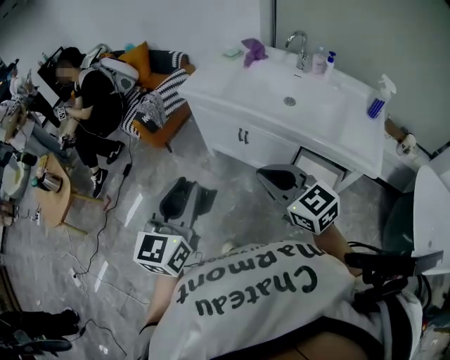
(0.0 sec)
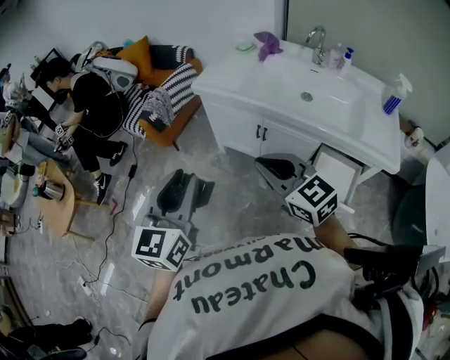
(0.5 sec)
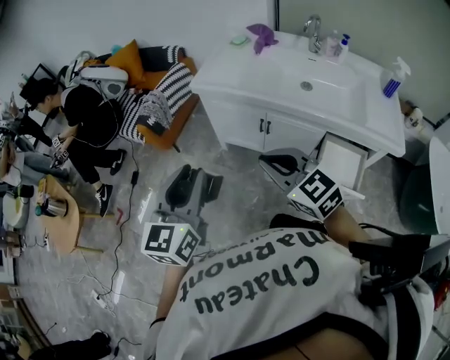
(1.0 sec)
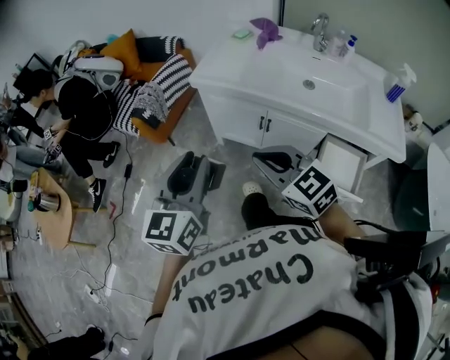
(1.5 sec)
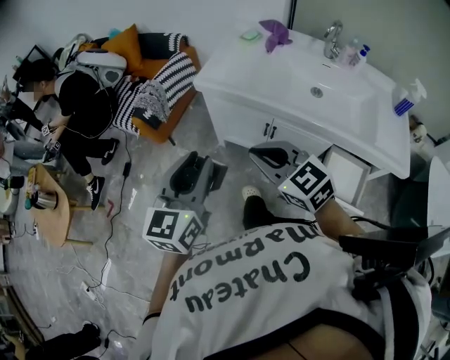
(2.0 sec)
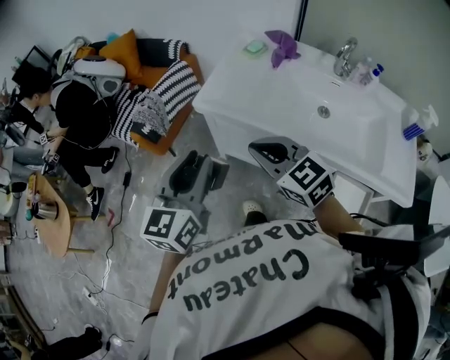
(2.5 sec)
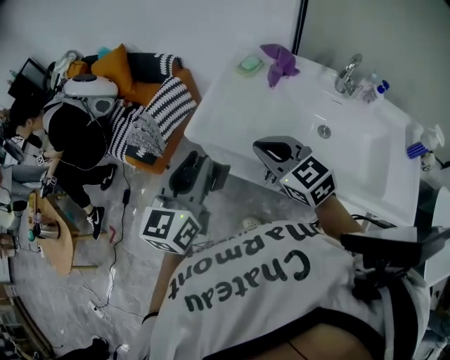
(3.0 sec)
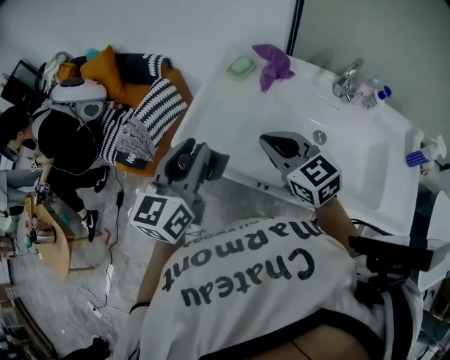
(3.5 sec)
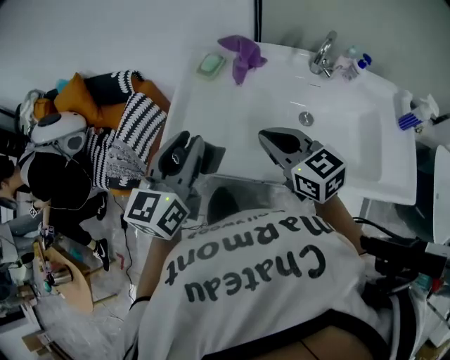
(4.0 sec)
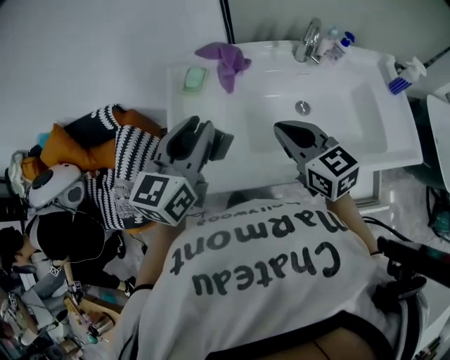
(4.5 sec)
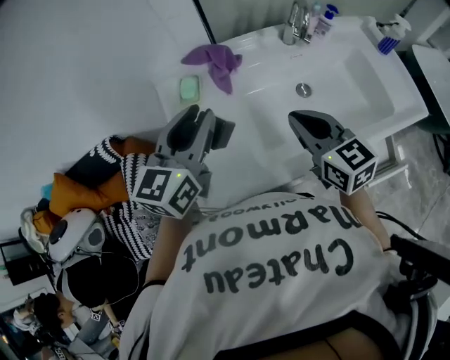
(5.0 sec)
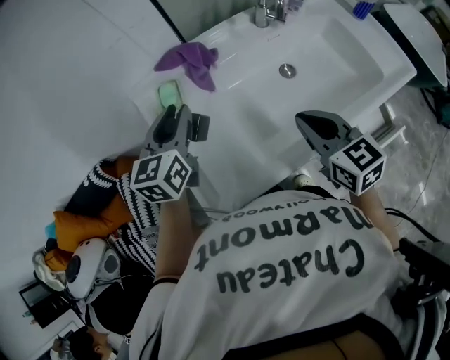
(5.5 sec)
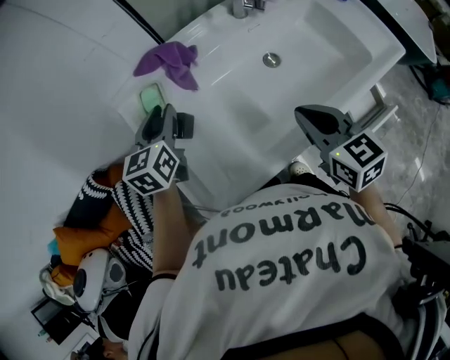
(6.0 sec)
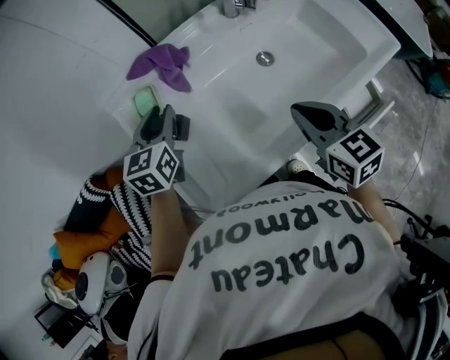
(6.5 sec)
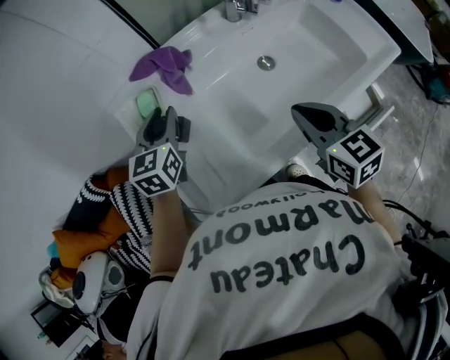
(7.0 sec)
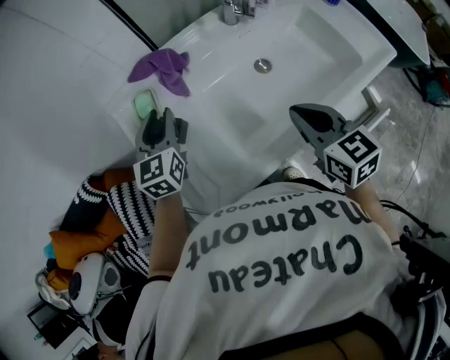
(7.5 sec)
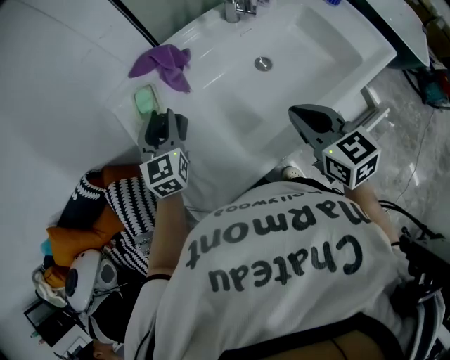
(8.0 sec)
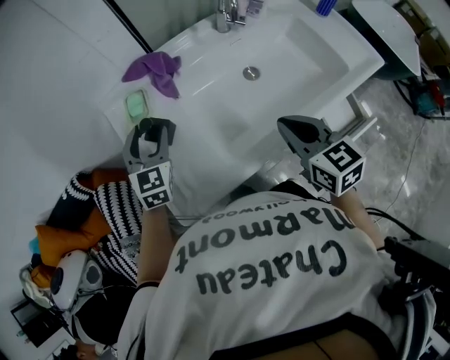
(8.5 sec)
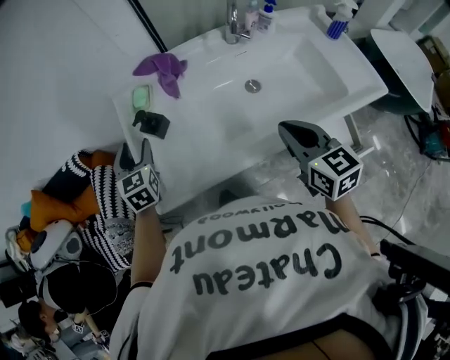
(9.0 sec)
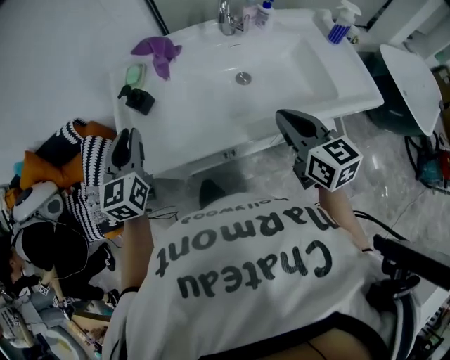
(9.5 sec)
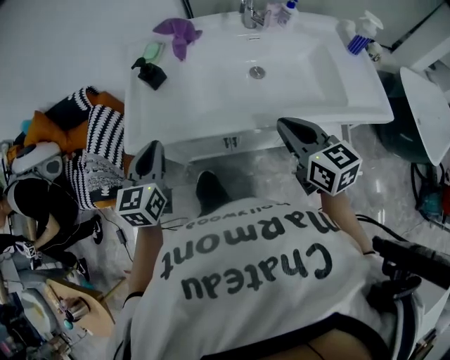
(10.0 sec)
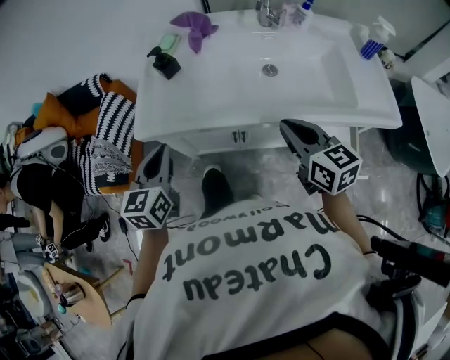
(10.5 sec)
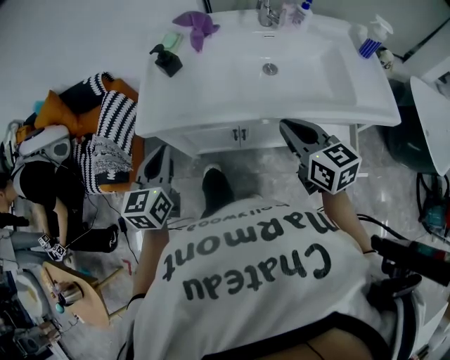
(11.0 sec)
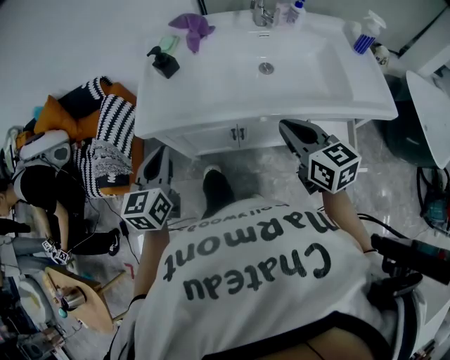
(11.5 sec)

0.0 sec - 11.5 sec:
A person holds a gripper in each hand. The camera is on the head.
0.0 sec - 2.0 sec: Both grippers move forward and to the left, some 25 cm.
2.0 sec - 4.0 sec: Both grippers travel together forward and to the right, approximately 35 cm. The right gripper turns by about 30 degrees.
4.0 sec - 6.0 sec: The right gripper shifts approximately 5 cm downward, and swivels about 50 degrees; the left gripper shifts by roughly 30 cm, and rotates roughly 30 degrees.
6.0 sec - 7.5 sec: The grippers move only a little.
7.5 sec - 9.5 sec: The right gripper goes approximately 15 cm to the right and backward, while the left gripper heads backward, covering roughly 20 cm, swivels about 20 degrees, and opens, then closes again.
9.5 sec - 11.5 sec: The left gripper moves backward, some 20 cm. Meanwhile the right gripper travels backward by roughly 5 cm.

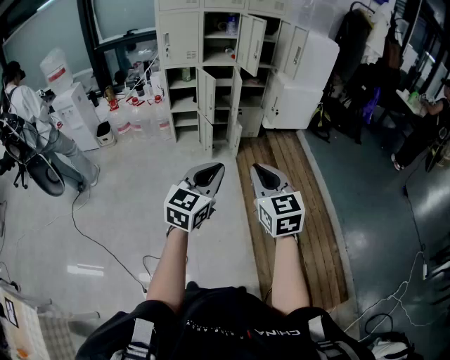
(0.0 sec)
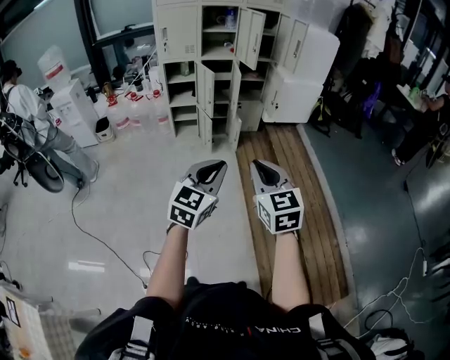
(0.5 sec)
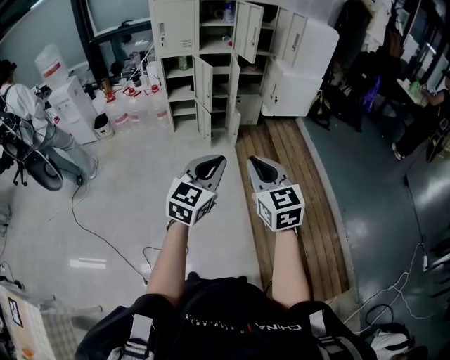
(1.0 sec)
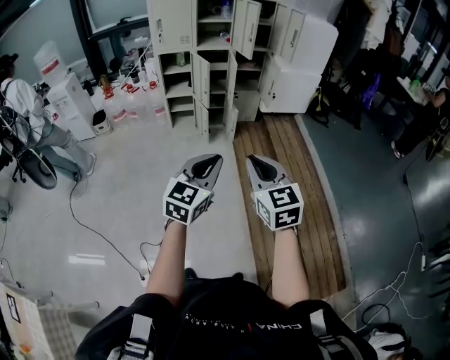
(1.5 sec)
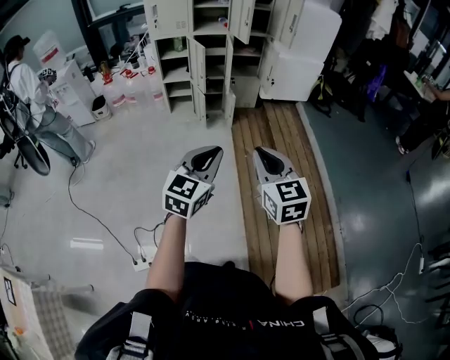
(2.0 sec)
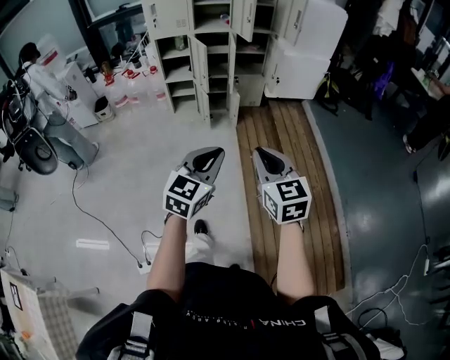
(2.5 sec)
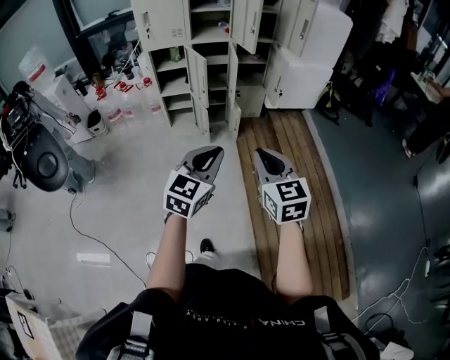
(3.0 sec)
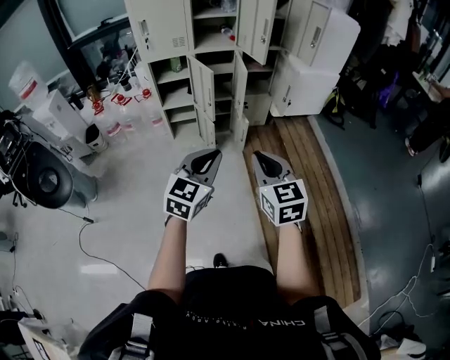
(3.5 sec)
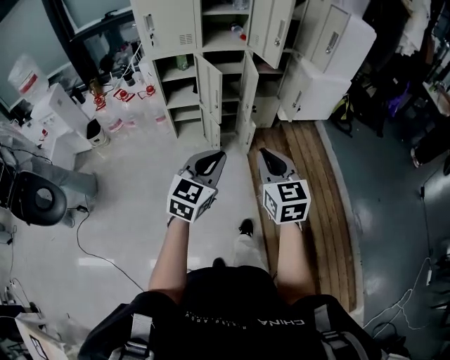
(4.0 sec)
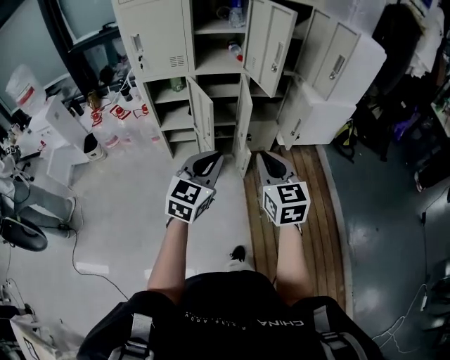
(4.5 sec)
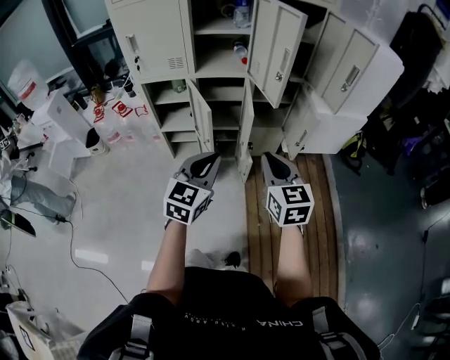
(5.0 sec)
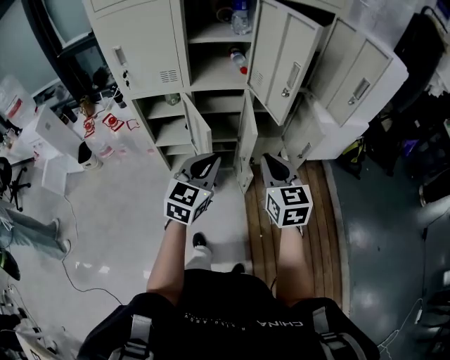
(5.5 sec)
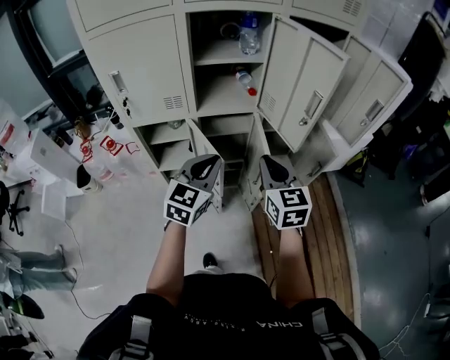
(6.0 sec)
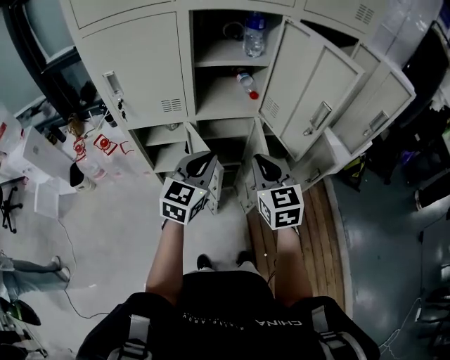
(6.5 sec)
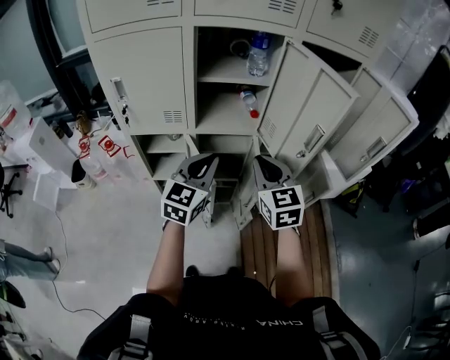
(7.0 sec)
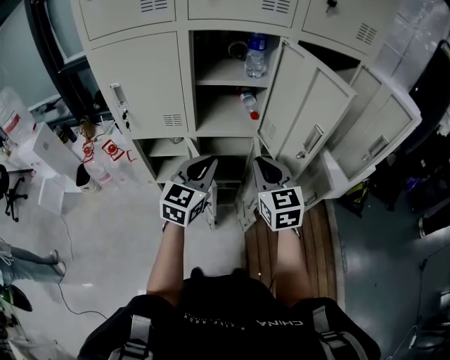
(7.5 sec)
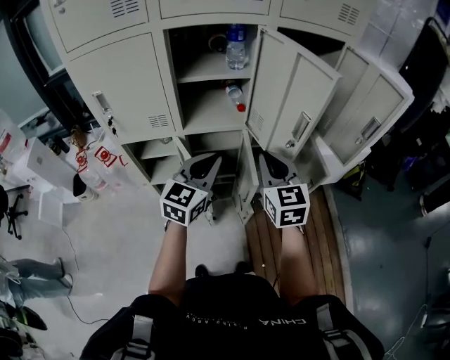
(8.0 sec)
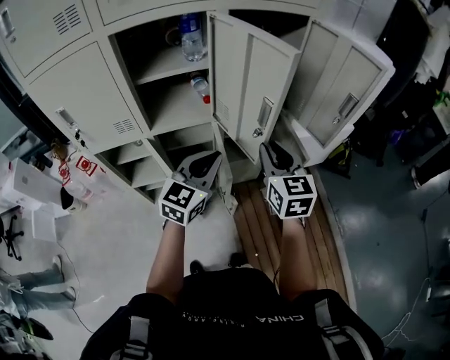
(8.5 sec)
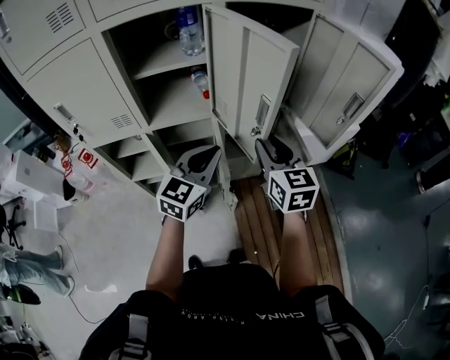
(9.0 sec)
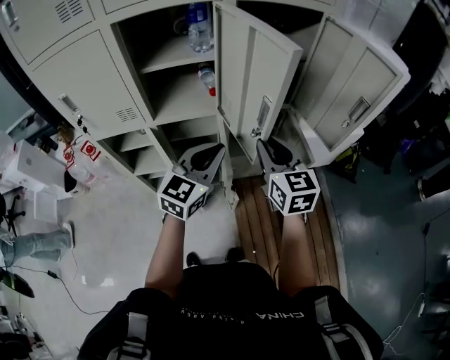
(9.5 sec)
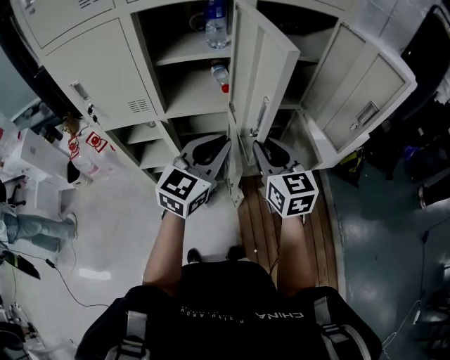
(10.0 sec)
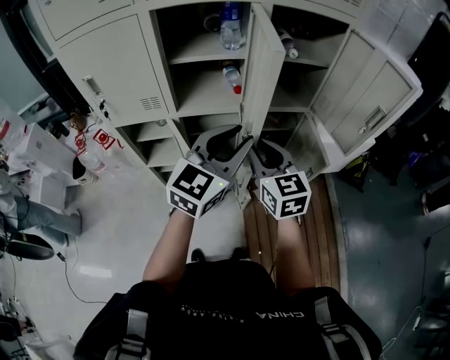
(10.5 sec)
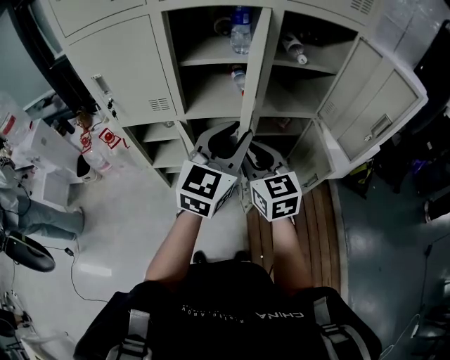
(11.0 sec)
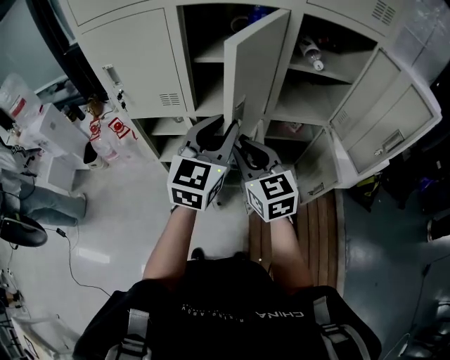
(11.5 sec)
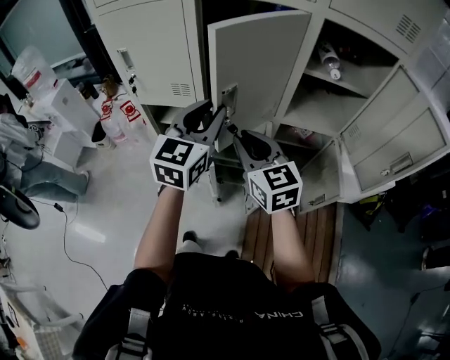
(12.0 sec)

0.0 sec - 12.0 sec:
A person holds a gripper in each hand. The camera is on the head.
0.0 sec - 2.0 sec: The grippers both shift to the right by roughly 10 cm.
2.0 sec - 4.0 sec: The pair of grippers is taken forward and to the left, about 40 cm.
4.0 sec - 6.0 sec: Both grippers are carried forward, about 50 cm.
6.0 sec - 8.0 sec: The two grippers go roughly 10 cm forward.
8.0 sec - 10.0 sec: The right gripper travels to the right by roughly 5 cm. Meanwhile the left gripper shifts about 10 cm to the right.
10.0 sec - 12.0 sec: The right gripper changes place by some 15 cm, and turns by about 20 degrees. Meanwhile the left gripper shifts by some 15 cm, and rotates roughly 30 degrees.

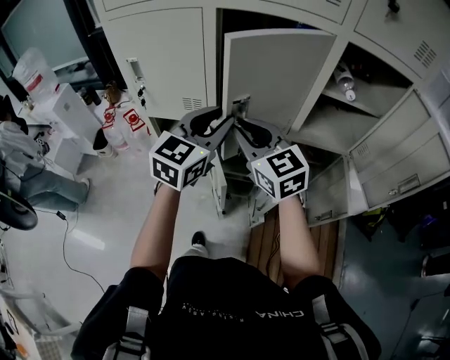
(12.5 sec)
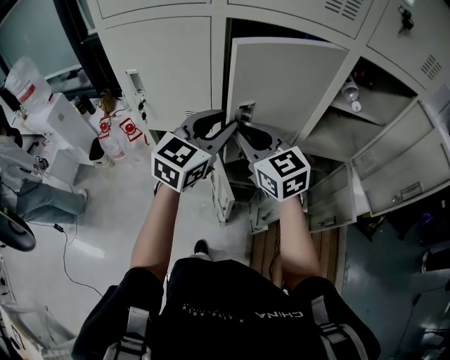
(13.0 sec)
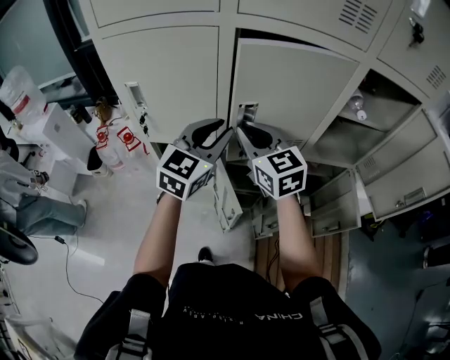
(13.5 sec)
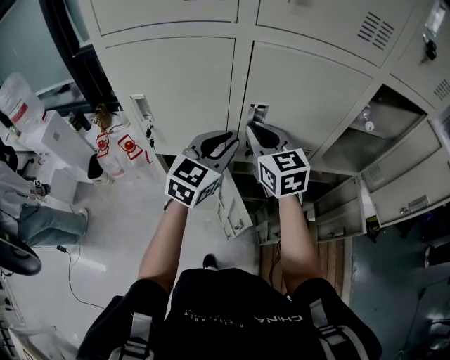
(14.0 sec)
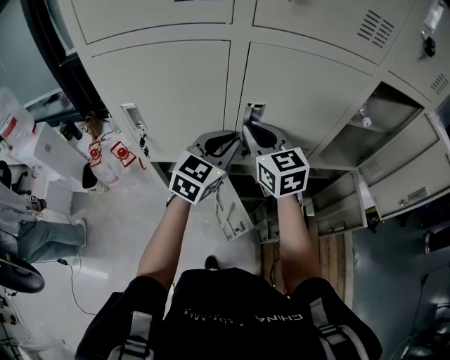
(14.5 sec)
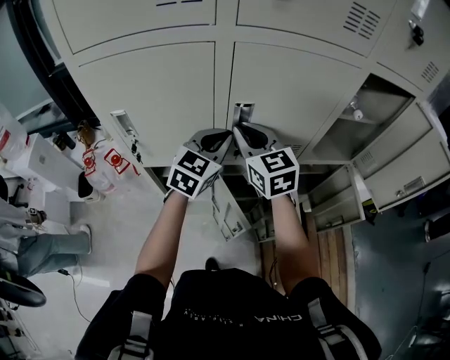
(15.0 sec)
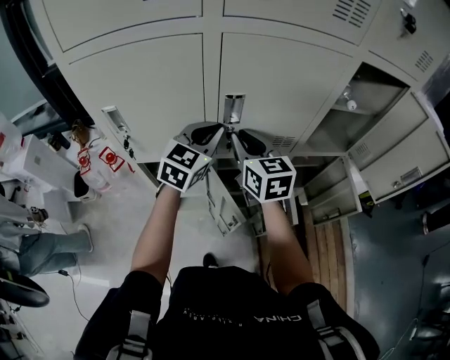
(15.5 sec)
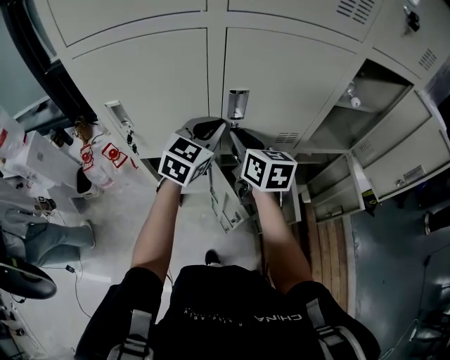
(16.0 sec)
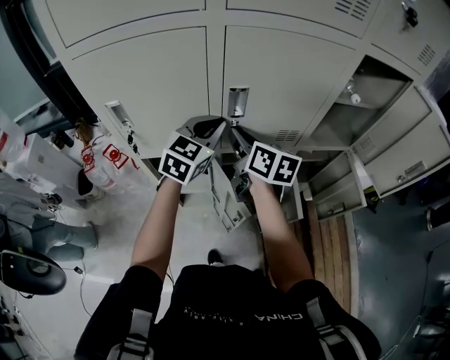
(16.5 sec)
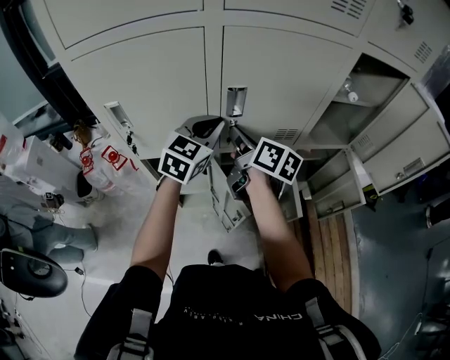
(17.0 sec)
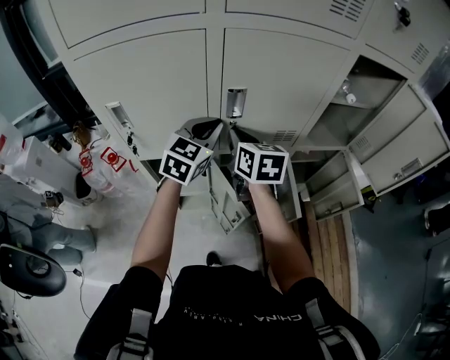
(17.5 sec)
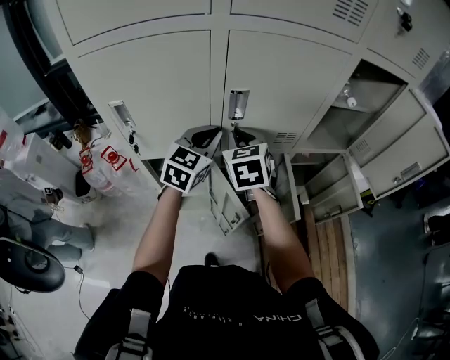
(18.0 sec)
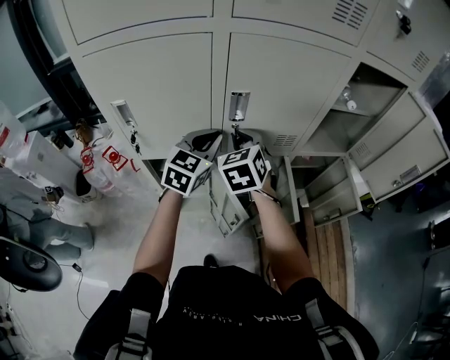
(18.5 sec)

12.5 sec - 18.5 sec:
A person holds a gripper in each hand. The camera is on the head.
12.5 sec - 14.5 sec: The left gripper shifts approximately 15 cm forward and to the left, while the right gripper travels forward by about 15 cm.
14.5 sec - 16.5 sec: The right gripper goes about 5 cm downward, and twists approximately 40 degrees clockwise, seen from behind.
16.5 sec - 18.5 sec: The right gripper twists approximately 50 degrees counterclockwise, seen from behind.
